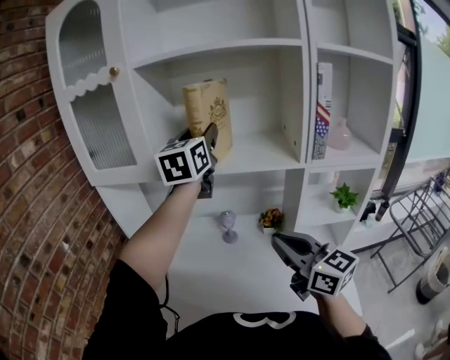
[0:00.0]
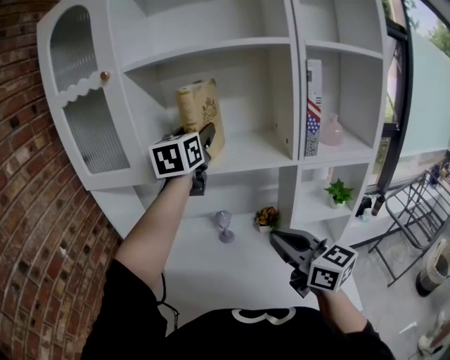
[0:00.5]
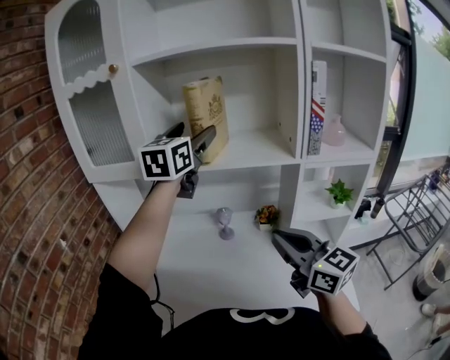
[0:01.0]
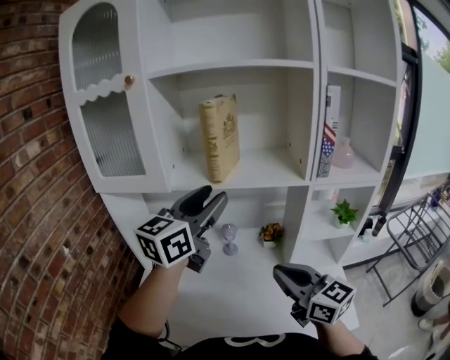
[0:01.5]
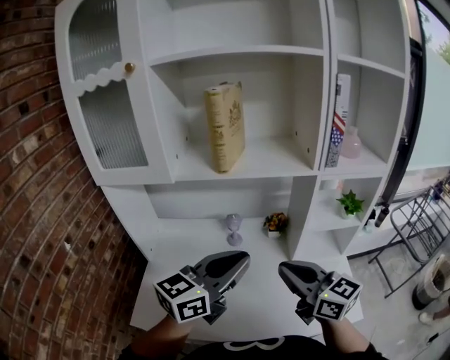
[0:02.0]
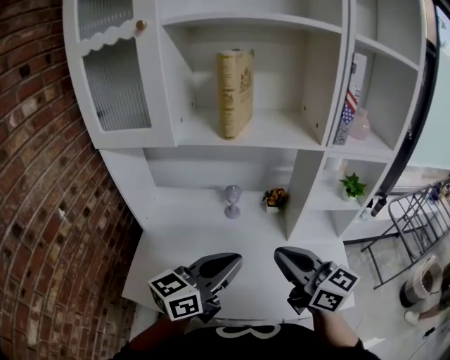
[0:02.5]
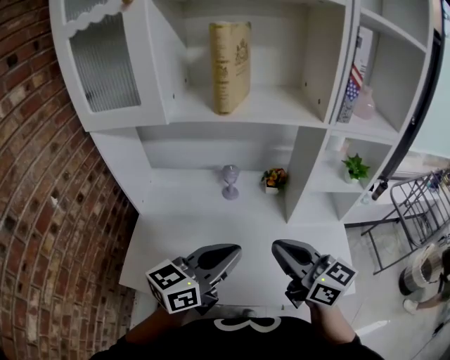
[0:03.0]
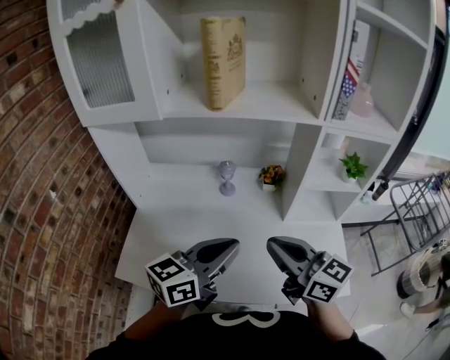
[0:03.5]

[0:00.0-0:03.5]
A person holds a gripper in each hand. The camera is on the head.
0:00.0 to 0:02.0: The left gripper heads backward and downward, covering approximately 30 cm, changes its angle by roughly 40 degrees, and closes its fingers; the right gripper moves some 5 cm.
0:02.0 to 0:03.5: The left gripper goes roughly 10 cm downward. Meanwhile the right gripper ends up approximately 5 cm from where it was.

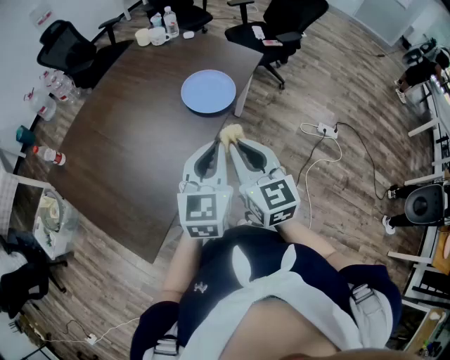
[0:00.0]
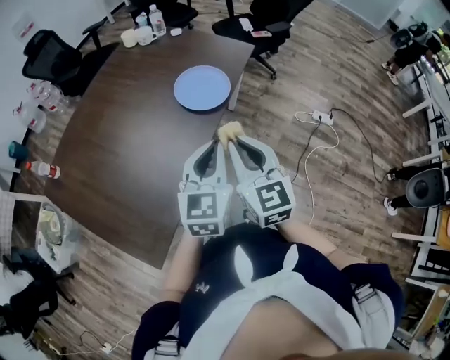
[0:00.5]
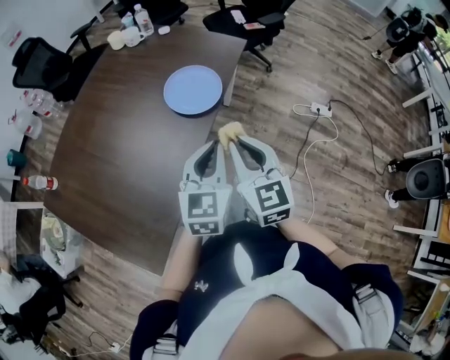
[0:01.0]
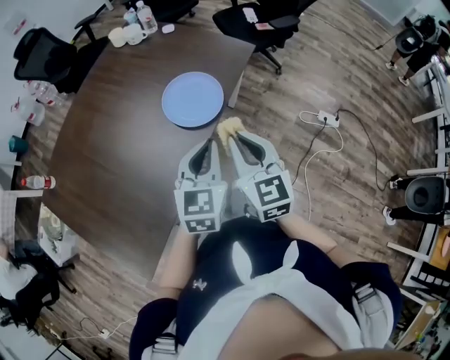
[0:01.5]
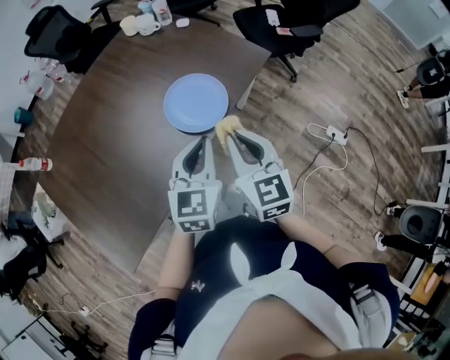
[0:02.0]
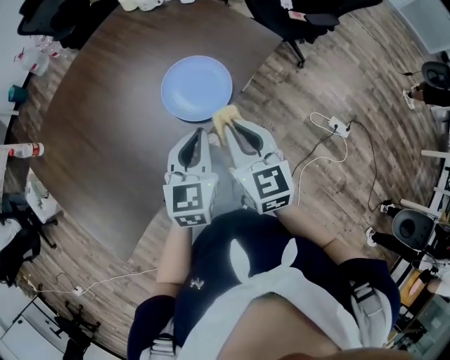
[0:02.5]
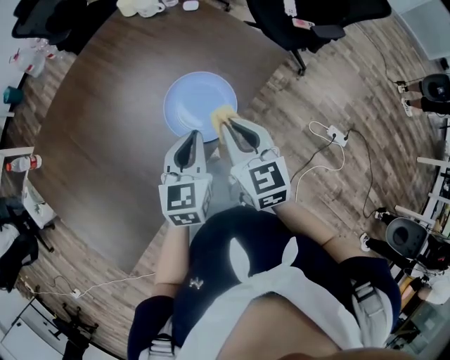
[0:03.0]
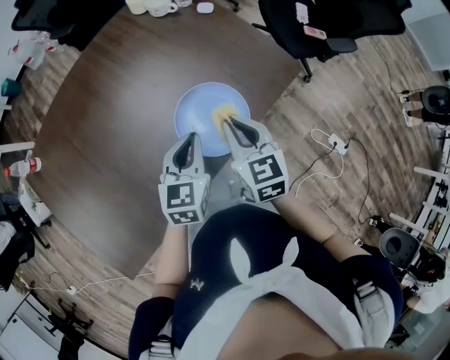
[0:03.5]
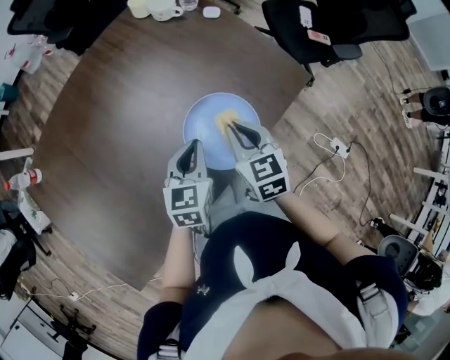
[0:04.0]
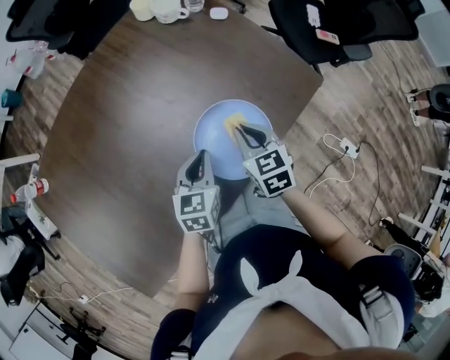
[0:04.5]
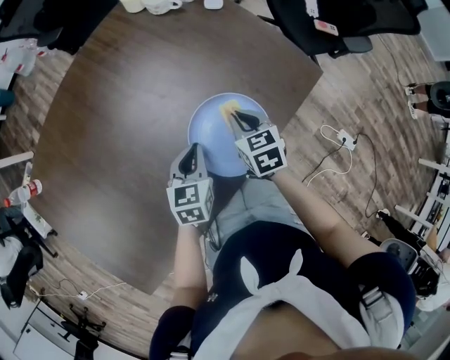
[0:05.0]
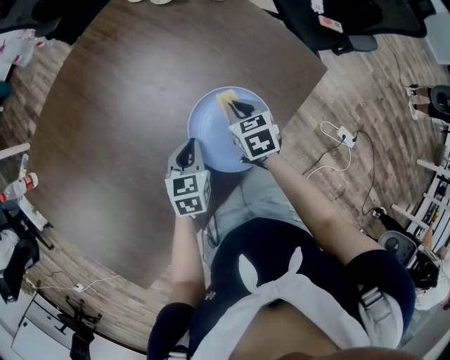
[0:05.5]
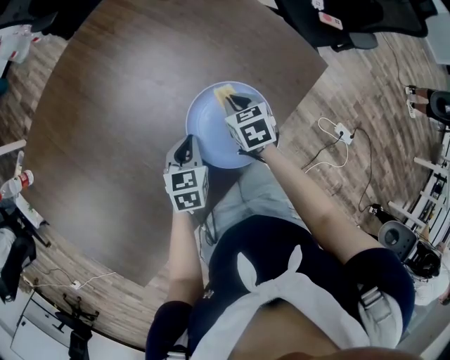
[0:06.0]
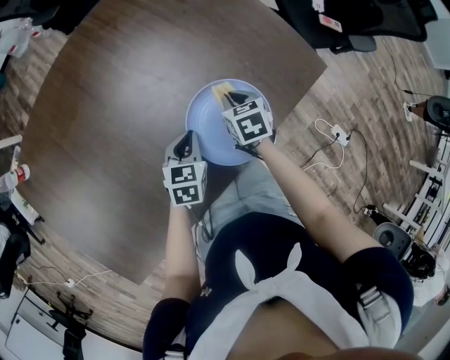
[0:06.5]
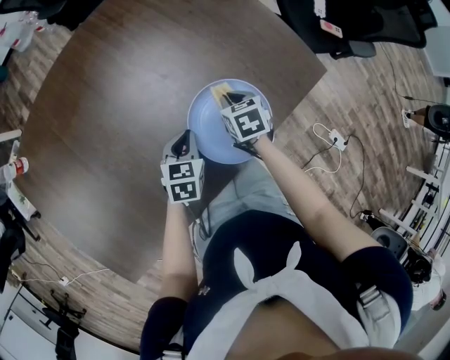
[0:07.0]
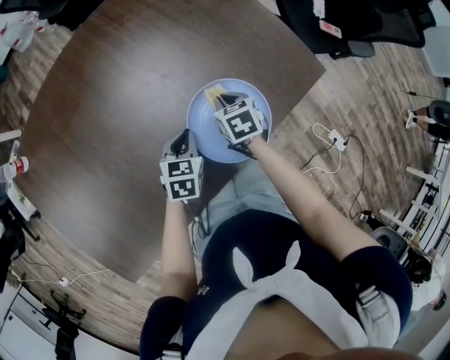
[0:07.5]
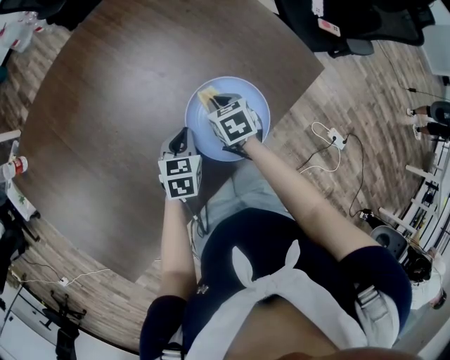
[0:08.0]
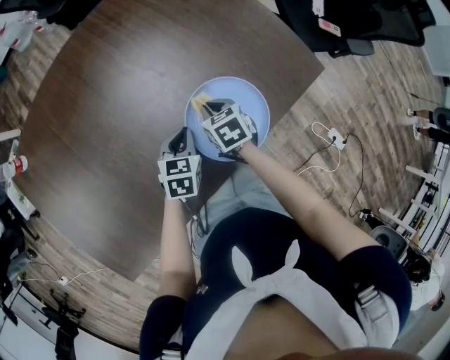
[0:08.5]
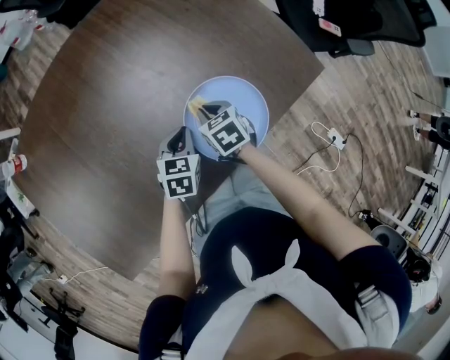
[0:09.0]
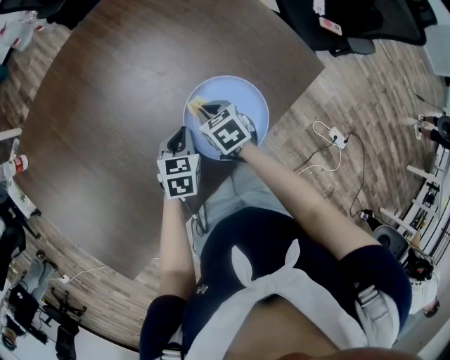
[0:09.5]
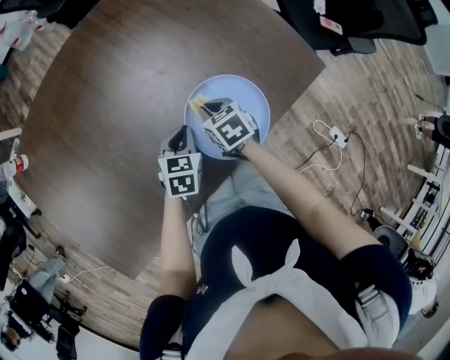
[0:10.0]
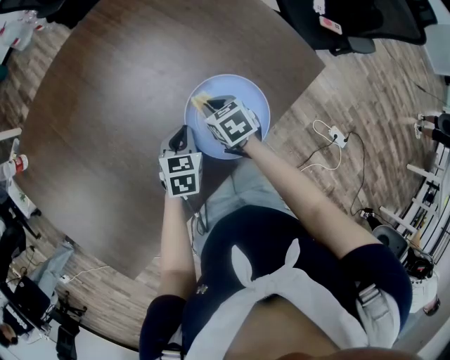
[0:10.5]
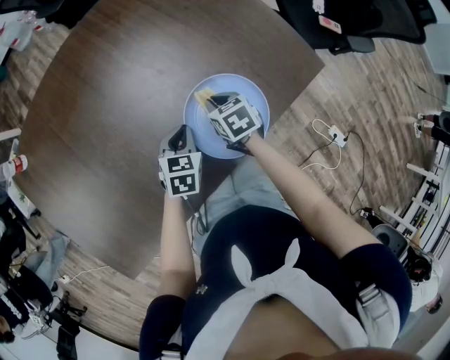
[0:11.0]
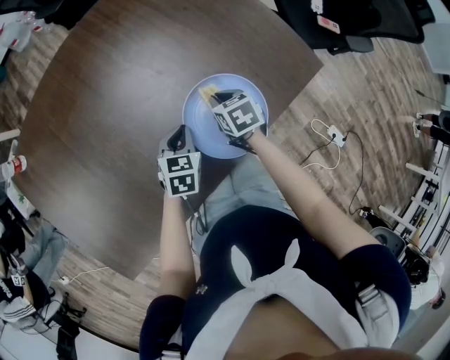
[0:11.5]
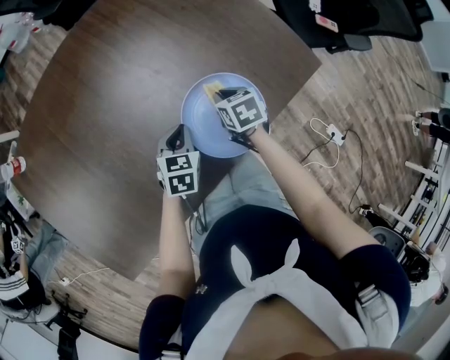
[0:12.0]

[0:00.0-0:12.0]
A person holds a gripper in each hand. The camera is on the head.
0:00.0 to 0:02.0: The left gripper travels forward by roughly 25 cm; the right gripper is displaced forward and to the right by about 25 cm.
0:02.0 to 0:04.0: The right gripper moves forward and downward, roughly 30 cm, and rotates some 20 degrees; the left gripper moves forward, downward and to the left, roughly 30 cm.
0:04.0 to 0:06.0: The right gripper travels downward and forward by about 20 cm. Meanwhile the left gripper heads downward, covering some 15 cm.
0:06.0 to 0:08.0: The right gripper moves to the left, about 5 cm.
0:08.0 to 0:10.0: There are only small adjustments of the grippers.
0:10.0 to 0:12.0: The right gripper goes approximately 5 cm to the right.

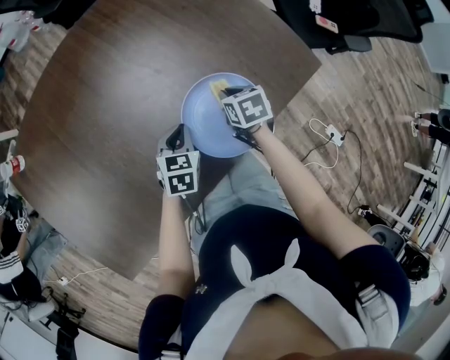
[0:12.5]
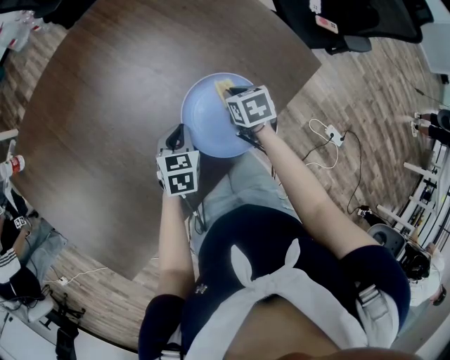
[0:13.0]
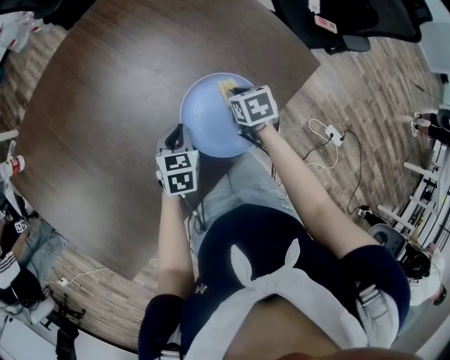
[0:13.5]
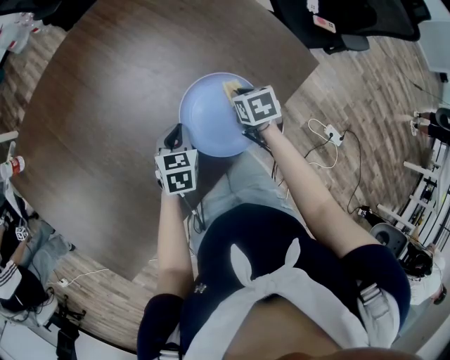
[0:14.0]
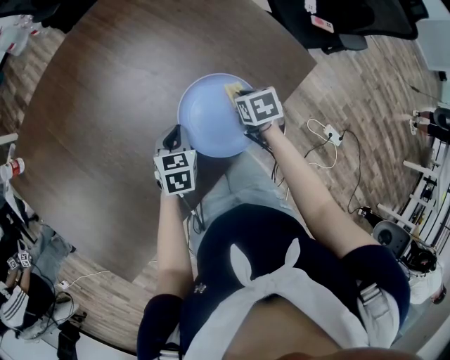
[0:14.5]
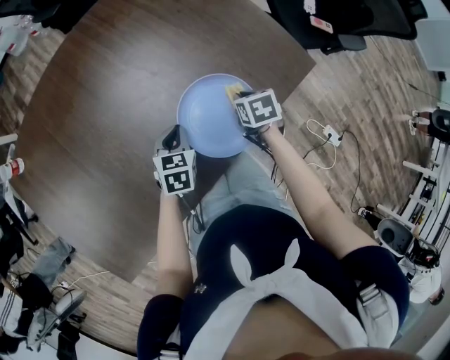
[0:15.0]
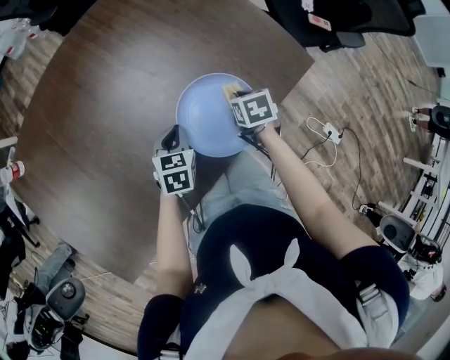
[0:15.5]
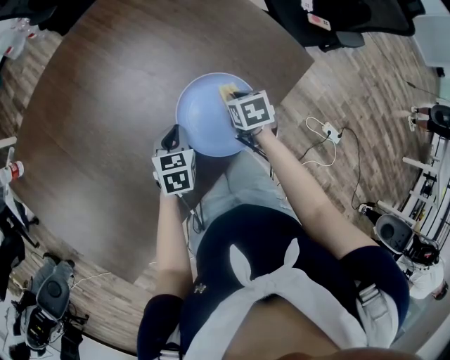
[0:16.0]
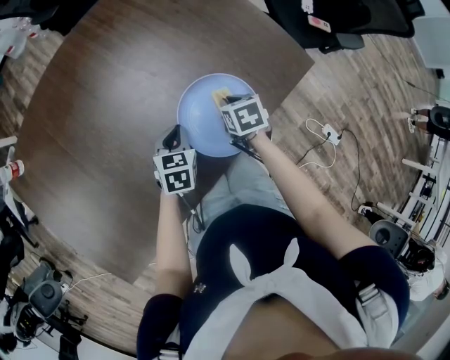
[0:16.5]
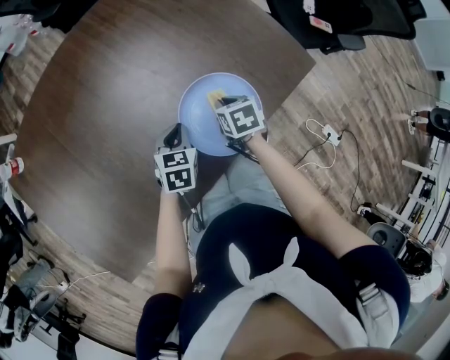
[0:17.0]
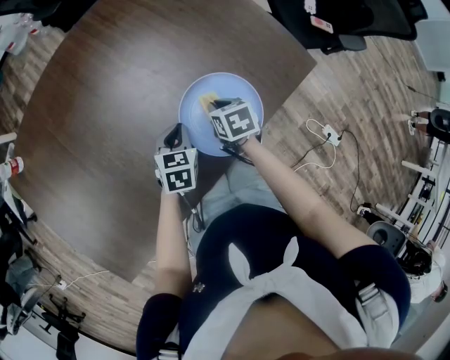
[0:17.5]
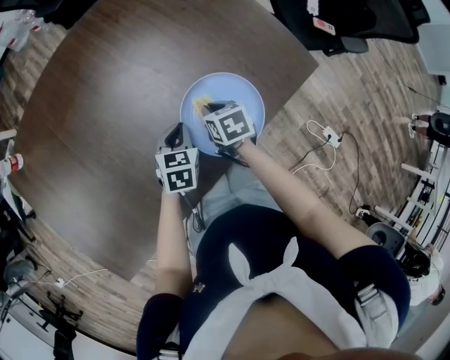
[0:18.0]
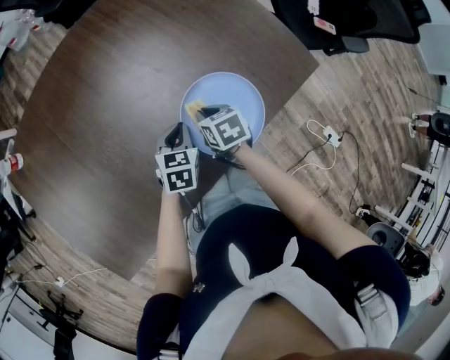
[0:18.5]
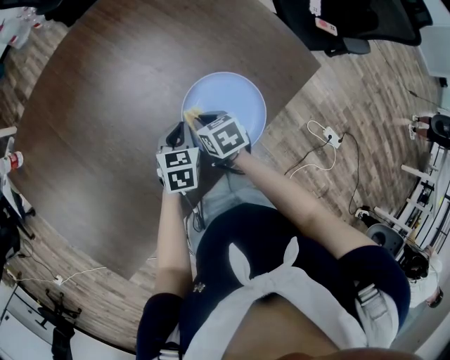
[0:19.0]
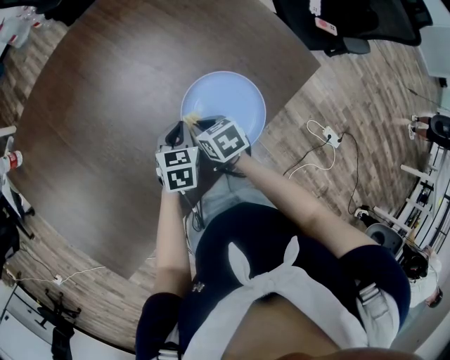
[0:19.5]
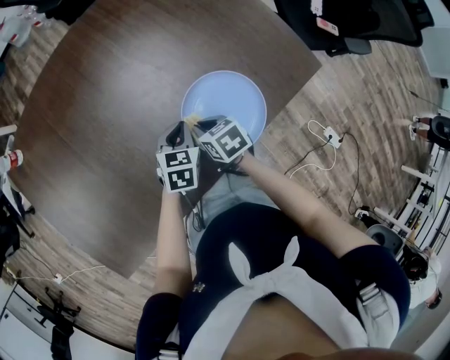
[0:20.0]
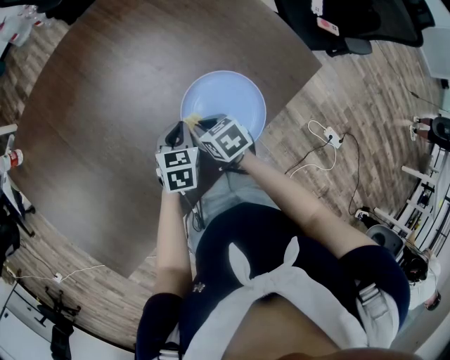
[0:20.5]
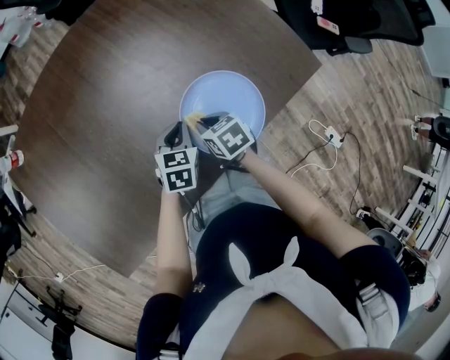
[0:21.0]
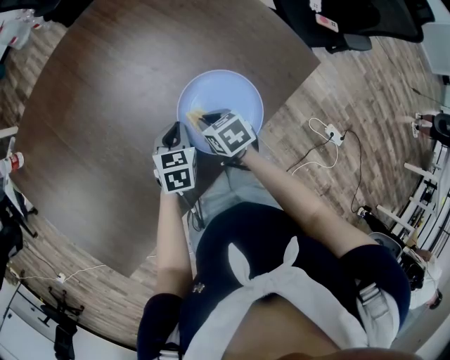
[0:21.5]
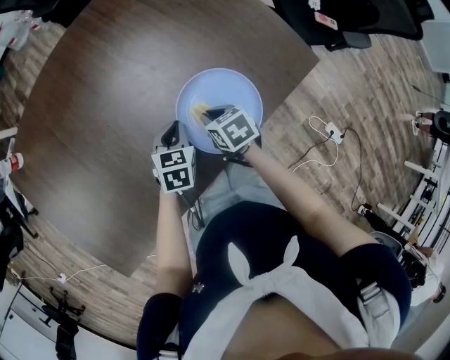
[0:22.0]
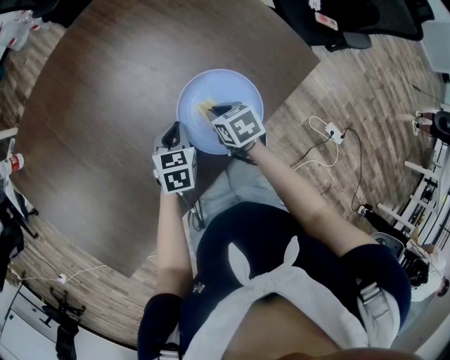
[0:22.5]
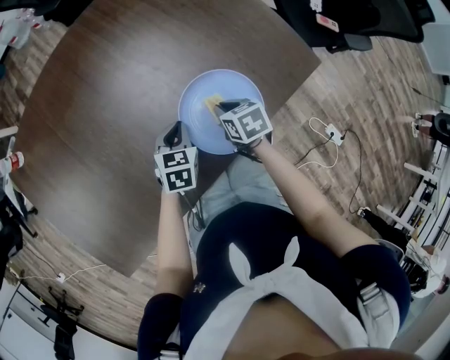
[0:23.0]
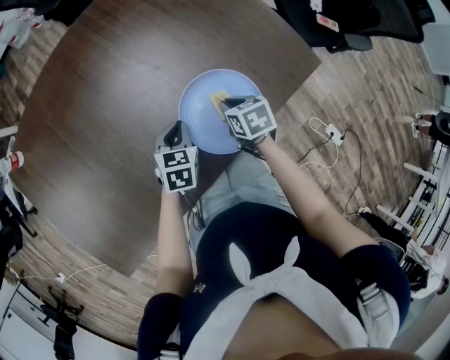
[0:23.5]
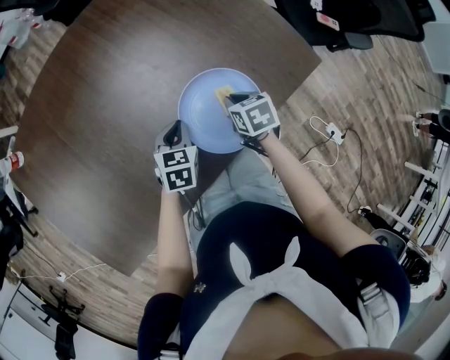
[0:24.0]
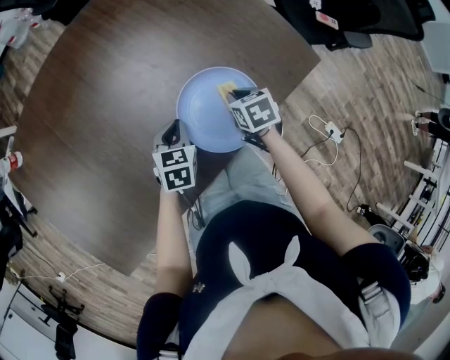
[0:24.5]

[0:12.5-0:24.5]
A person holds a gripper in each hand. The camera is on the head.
0:12.5 to 0:14.5: The right gripper travels to the right by some 5 cm.
0:14.5 to 0:16.5: There are only small adjustments of the grippers.
0:16.5 to 0:18.5: The right gripper heads to the left, covering about 10 cm.
0:18.5 to 0:20.5: The grippers stay close to where they were, moving slightly.
0:20.5 to 0:22.5: The right gripper heads to the right, covering roughly 5 cm.
0:22.5 to 0:24.5: The right gripper moves to the right, roughly 5 cm.
